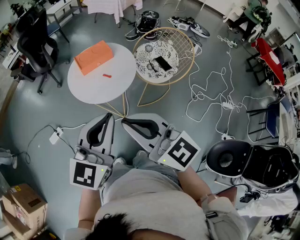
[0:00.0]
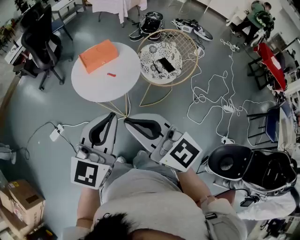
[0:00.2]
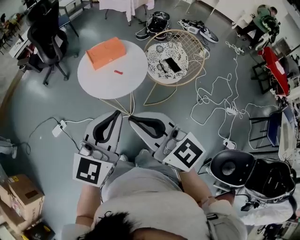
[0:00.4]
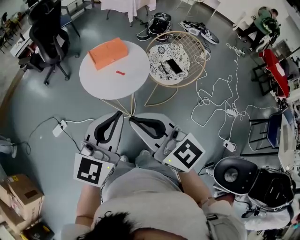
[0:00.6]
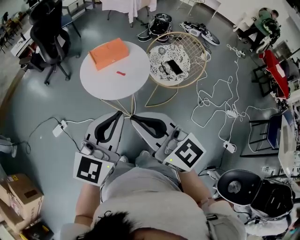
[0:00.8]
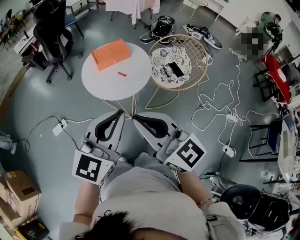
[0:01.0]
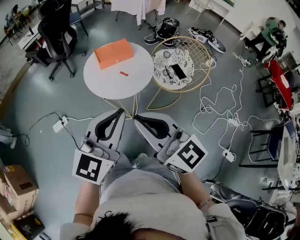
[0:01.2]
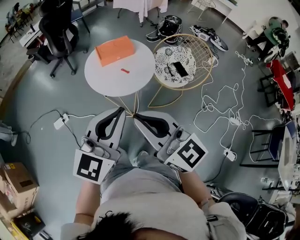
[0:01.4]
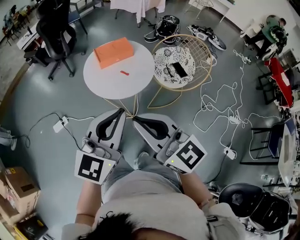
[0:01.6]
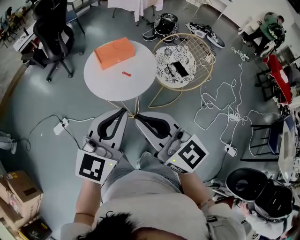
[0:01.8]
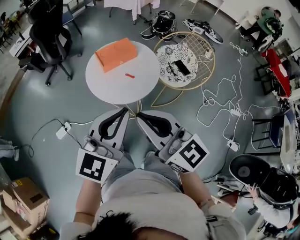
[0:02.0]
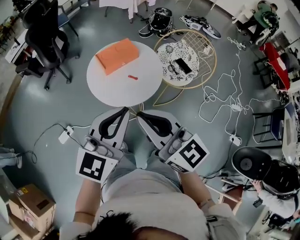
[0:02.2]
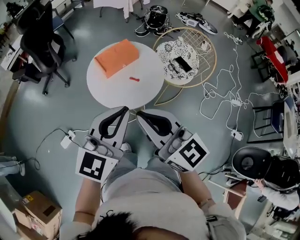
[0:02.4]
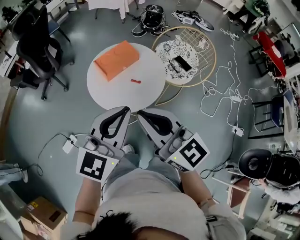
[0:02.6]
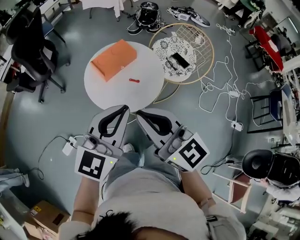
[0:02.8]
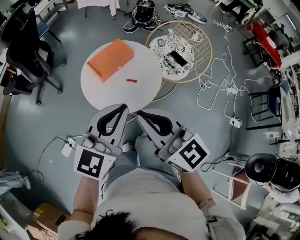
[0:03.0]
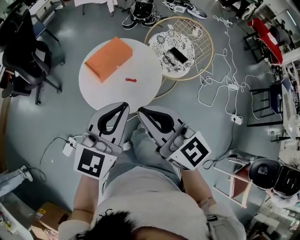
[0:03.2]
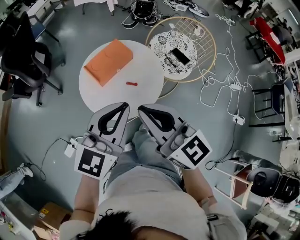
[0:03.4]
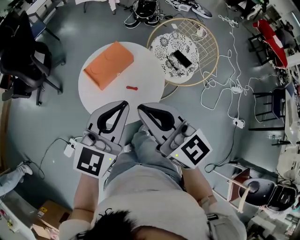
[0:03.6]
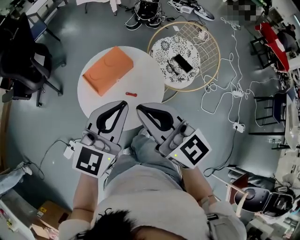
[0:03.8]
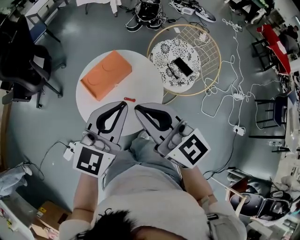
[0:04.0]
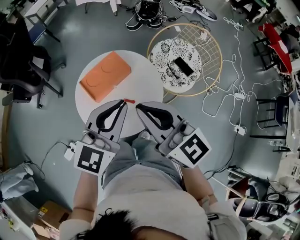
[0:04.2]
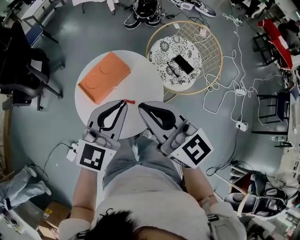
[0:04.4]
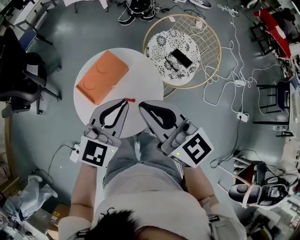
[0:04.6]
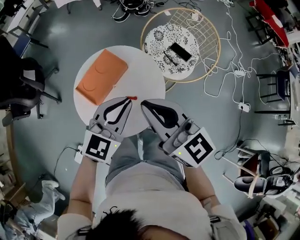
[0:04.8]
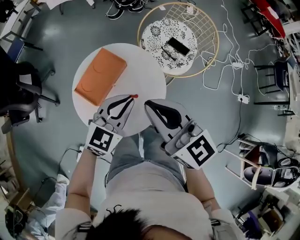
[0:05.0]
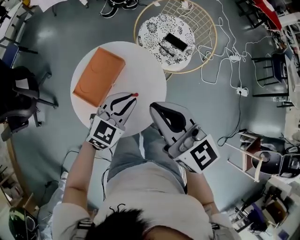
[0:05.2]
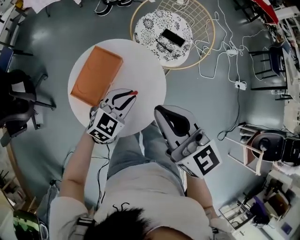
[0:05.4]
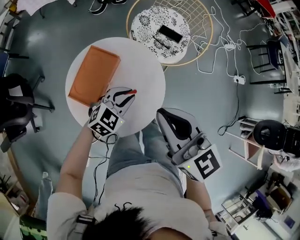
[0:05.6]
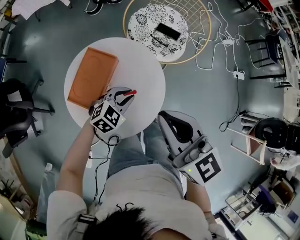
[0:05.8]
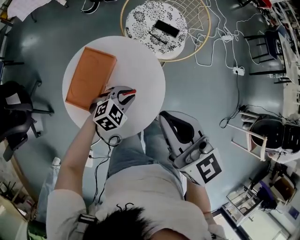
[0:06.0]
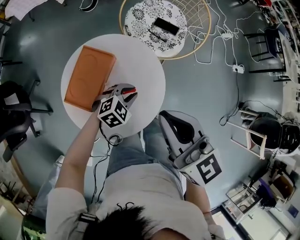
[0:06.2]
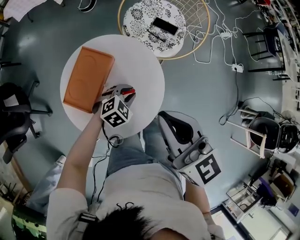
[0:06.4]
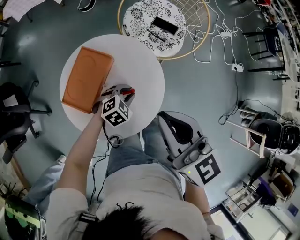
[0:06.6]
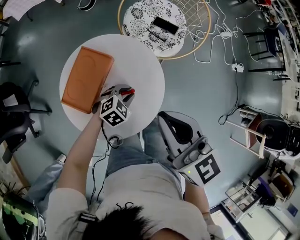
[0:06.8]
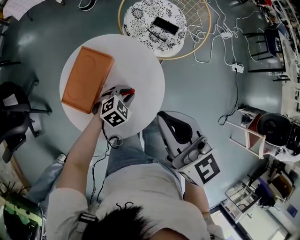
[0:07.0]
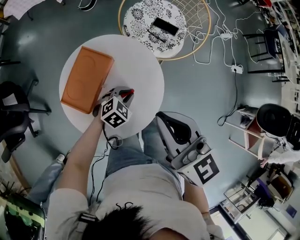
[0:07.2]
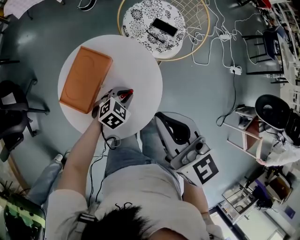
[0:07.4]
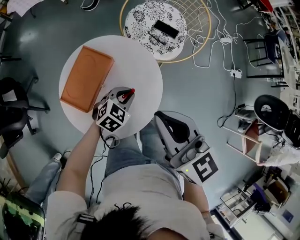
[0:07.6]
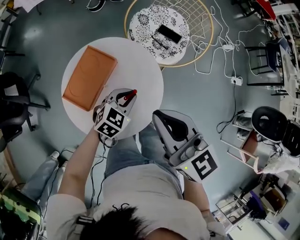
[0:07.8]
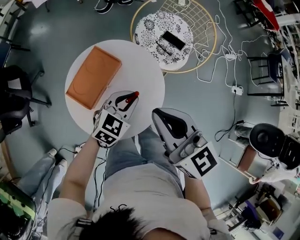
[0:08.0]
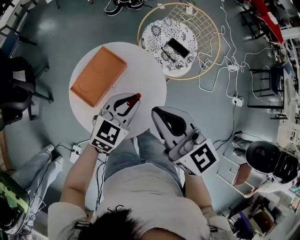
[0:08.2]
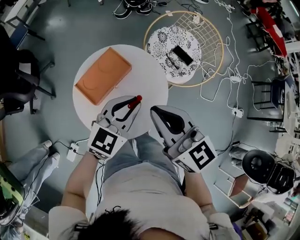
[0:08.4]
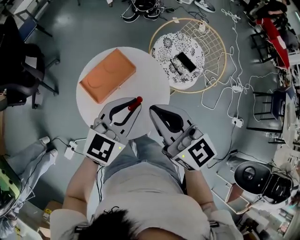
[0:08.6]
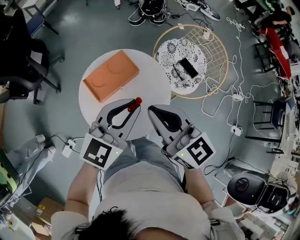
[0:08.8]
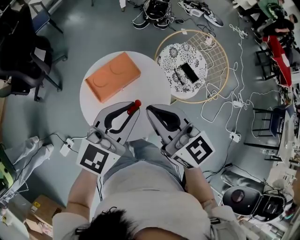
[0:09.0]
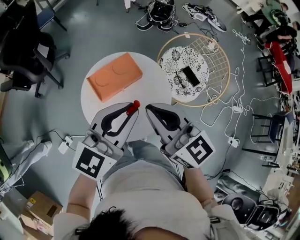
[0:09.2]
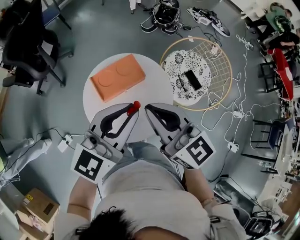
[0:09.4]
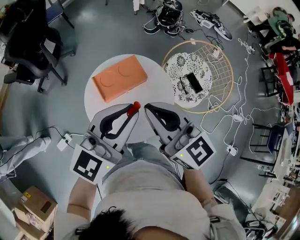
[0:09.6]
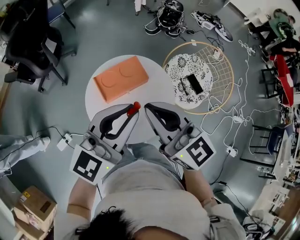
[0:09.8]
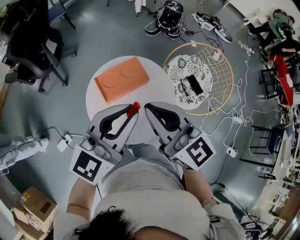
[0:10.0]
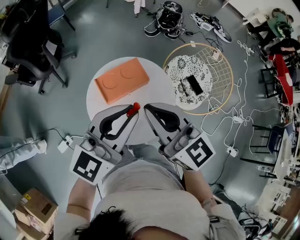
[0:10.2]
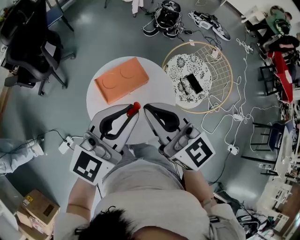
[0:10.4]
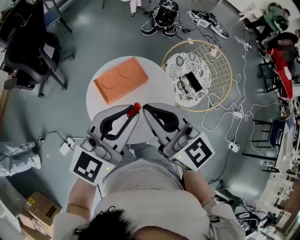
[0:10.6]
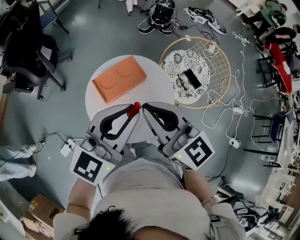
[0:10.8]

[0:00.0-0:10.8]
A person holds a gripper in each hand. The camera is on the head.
0:00.0 to 0:01.6: There are only small adjustments of the grippers.
0:01.6 to 0:03.0: Both grippers move forward and to the left, about 20 cm. The left gripper swivels roughly 20 degrees. Meanwhile the right gripper rotates some 20 degrees.
0:03.0 to 0:04.6: The two grippers go about 20 cm forward.
0:04.6 to 0:06.2: The right gripper rotates roughly 30 degrees. The left gripper shifts about 25 cm downward, and tilts its fingers roughly 30 degrees downward.
0:06.2 to 0:07.8: The left gripper travels upward by about 5 cm, and swivels some 20 degrees.
0:07.8 to 0:09.2: The left gripper goes approximately 25 cm upward, and tilts its fingers some 40 degrees upward; the right gripper ends up approximately 5 cm from where it was, and swivels some 30 degrees.
0:09.2 to 0:10.8: The grippers stay close to where they were, moving slightly.

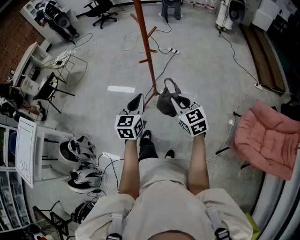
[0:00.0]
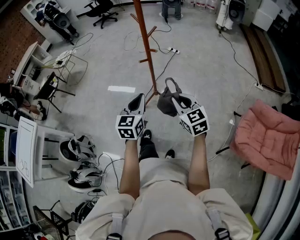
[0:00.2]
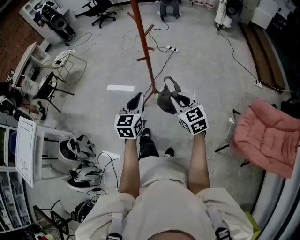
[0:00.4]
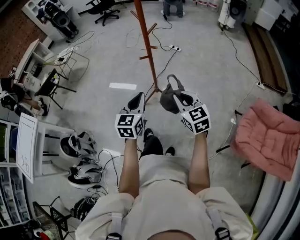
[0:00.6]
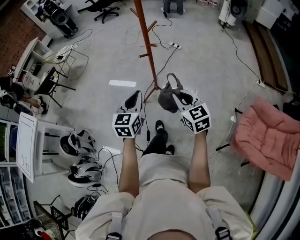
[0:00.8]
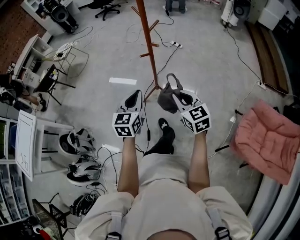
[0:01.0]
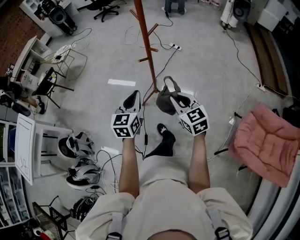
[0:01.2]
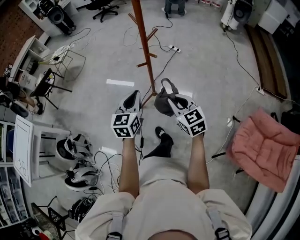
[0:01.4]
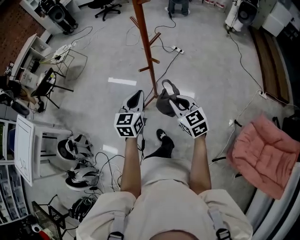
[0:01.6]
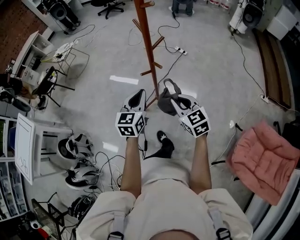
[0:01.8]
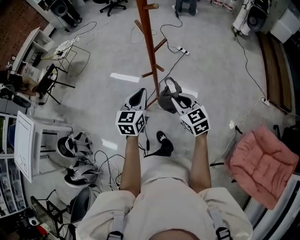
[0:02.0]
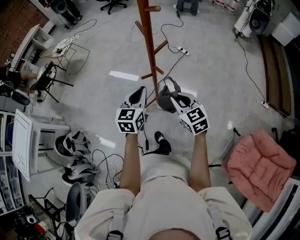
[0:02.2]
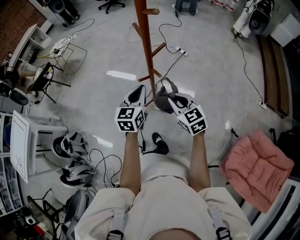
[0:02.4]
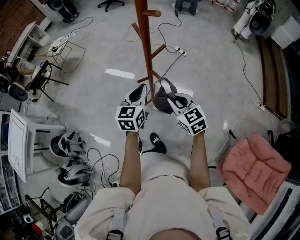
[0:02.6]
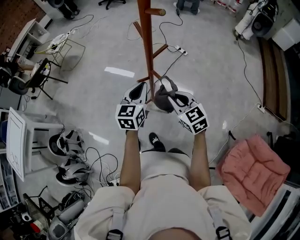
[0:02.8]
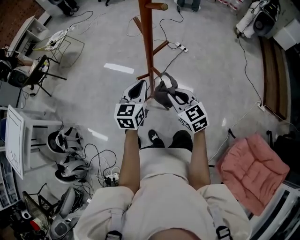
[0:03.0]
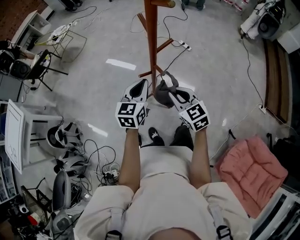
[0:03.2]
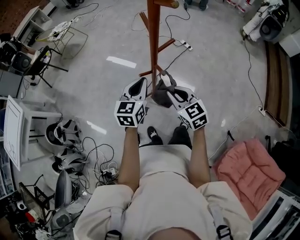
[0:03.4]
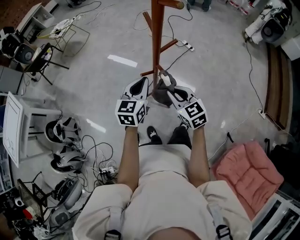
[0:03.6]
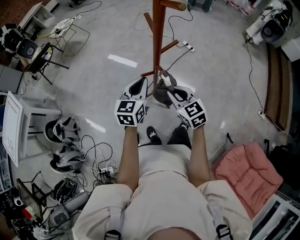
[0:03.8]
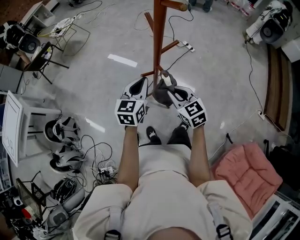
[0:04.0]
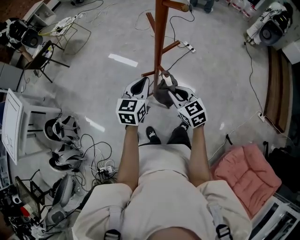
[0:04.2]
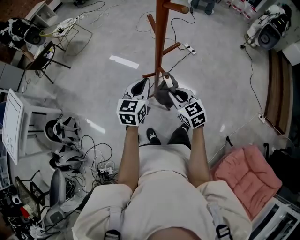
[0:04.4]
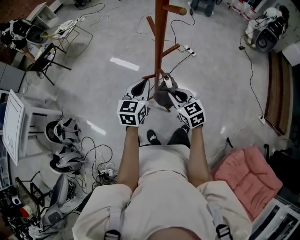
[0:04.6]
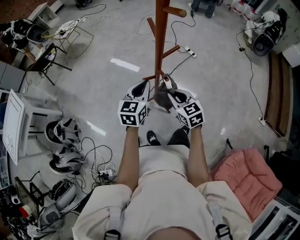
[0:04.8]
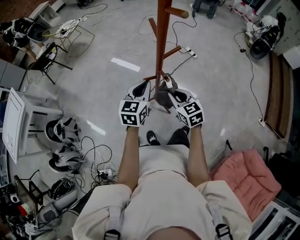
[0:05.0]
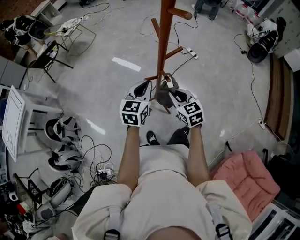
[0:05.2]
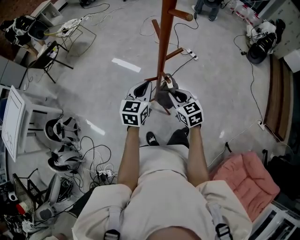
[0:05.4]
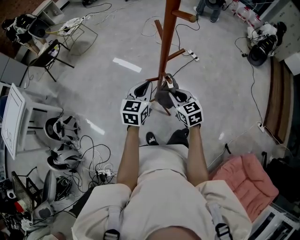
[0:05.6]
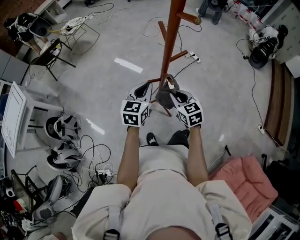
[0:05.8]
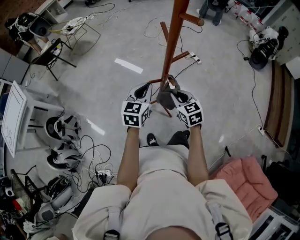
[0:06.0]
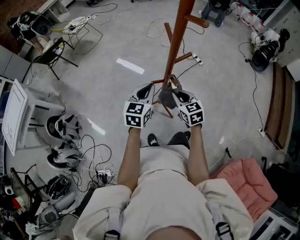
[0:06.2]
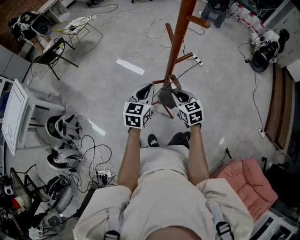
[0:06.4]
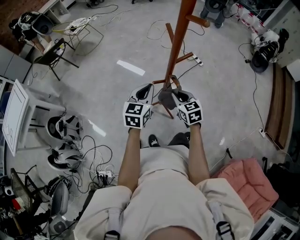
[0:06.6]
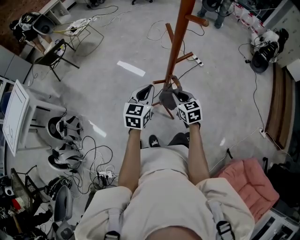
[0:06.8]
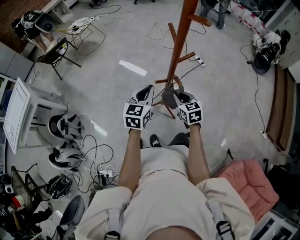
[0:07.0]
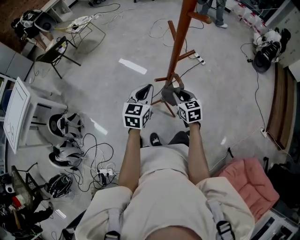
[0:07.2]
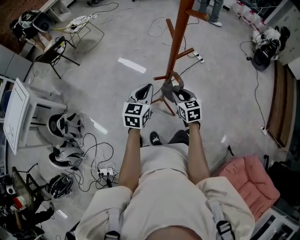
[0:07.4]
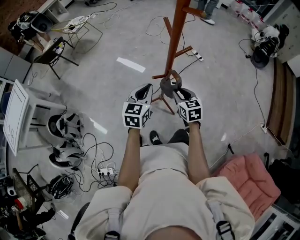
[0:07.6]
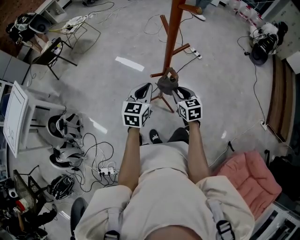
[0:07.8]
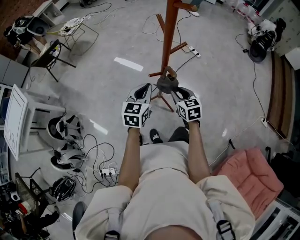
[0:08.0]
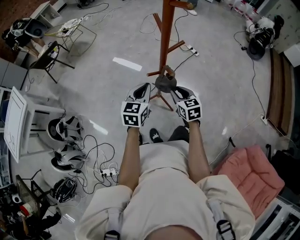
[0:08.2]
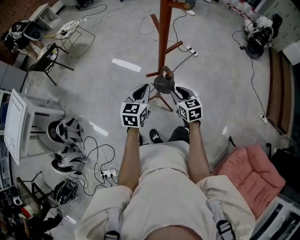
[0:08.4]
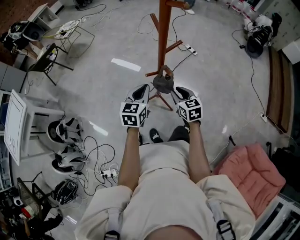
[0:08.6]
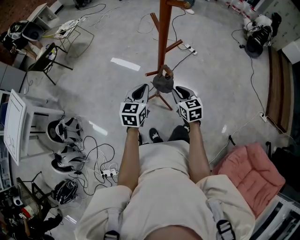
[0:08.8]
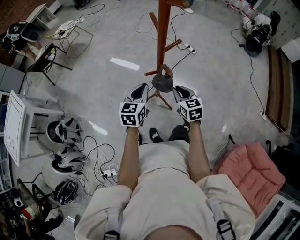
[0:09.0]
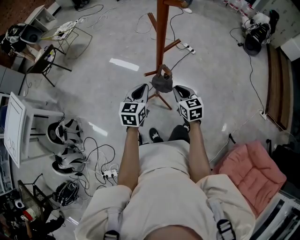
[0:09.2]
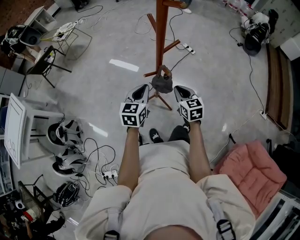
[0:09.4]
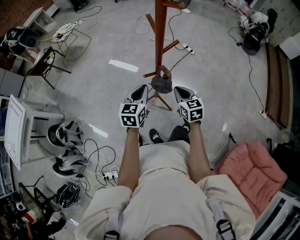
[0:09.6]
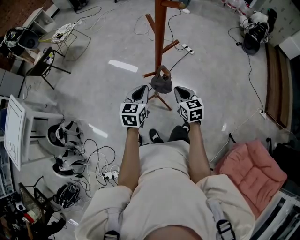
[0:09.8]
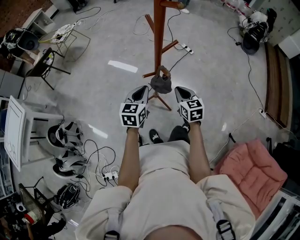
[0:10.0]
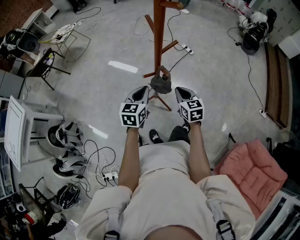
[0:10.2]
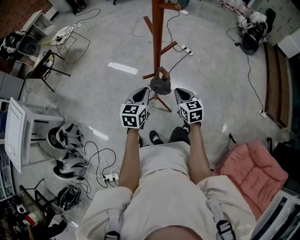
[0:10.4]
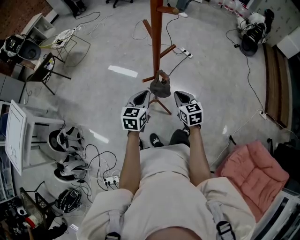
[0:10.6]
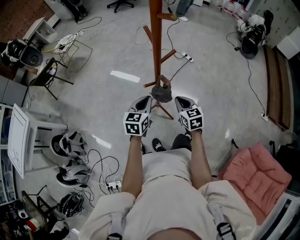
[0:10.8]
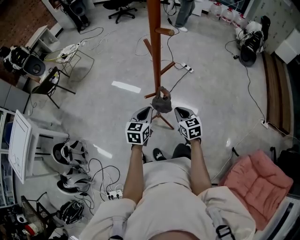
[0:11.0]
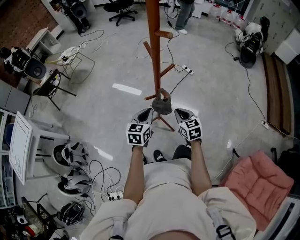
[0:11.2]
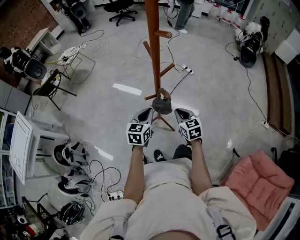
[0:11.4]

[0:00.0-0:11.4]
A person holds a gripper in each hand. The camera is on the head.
0:00.0 to 0:01.4: The grippers both shift forward by roughly 5 cm.
0:01.4 to 0:02.8: The right gripper heads forward, covering approximately 15 cm, while the left gripper goes about 15 cm forward and to the right.
0:02.8 to 0:04.2: The grippers stay close to where they were, moving slightly.
0:04.2 to 0:05.6: The grippers stay close to where they were, moving slightly.
0:05.6 to 0:08.6: The grippers move only a little.
0:08.6 to 0:10.0: The right gripper closes its fingers.
0:10.0 to 0:11.4: The grippers move only a little.

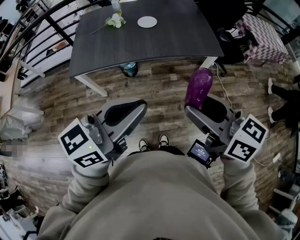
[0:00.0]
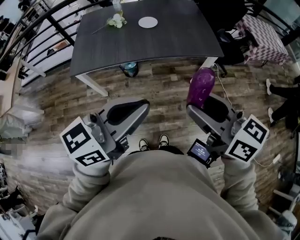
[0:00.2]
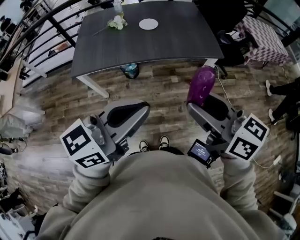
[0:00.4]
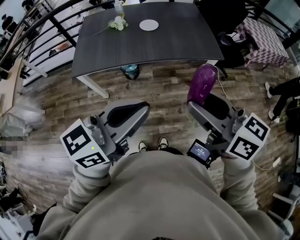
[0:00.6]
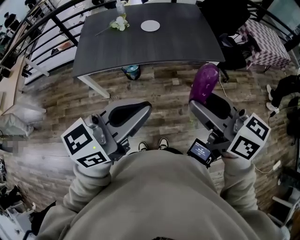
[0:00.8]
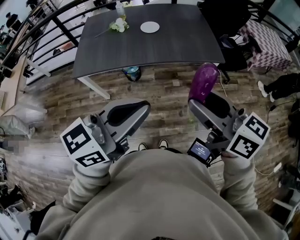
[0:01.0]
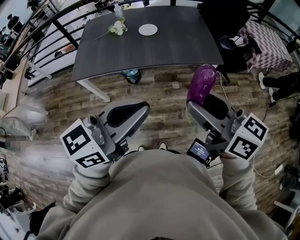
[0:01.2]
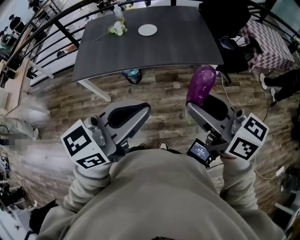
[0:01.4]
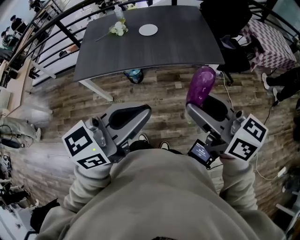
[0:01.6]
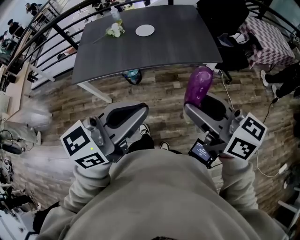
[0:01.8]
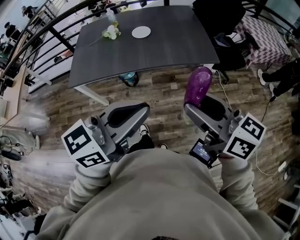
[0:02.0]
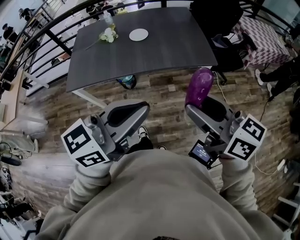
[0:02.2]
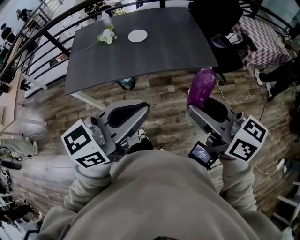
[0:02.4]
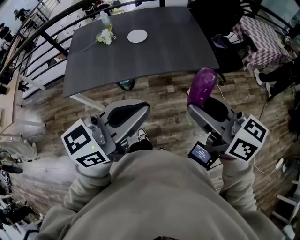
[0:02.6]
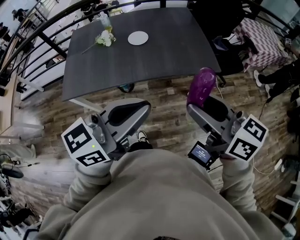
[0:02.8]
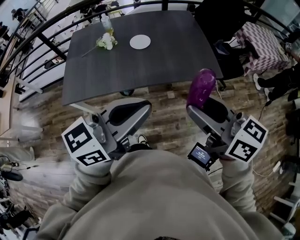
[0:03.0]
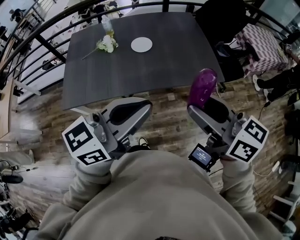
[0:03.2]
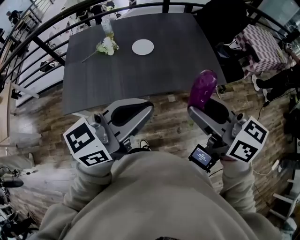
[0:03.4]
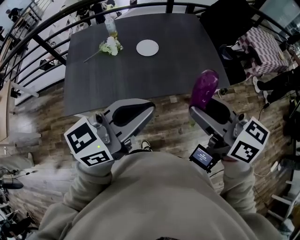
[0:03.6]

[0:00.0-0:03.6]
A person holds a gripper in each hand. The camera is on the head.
0:00.0 to 0:01.8: Both grippers travel together to the right, approximately 10 cm.
0:01.8 to 0:03.6: Both grippers move forward and to the left, some 25 cm.
